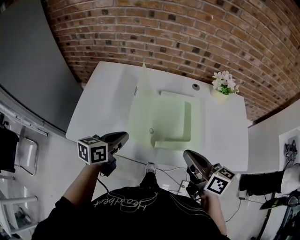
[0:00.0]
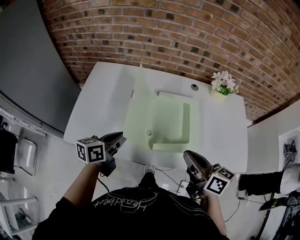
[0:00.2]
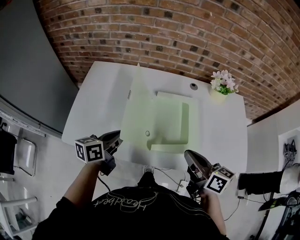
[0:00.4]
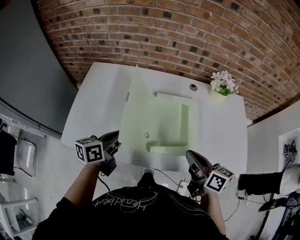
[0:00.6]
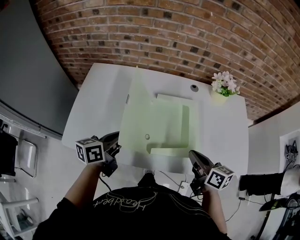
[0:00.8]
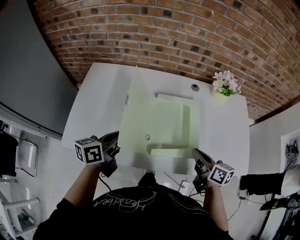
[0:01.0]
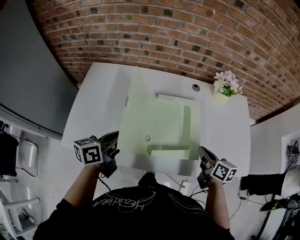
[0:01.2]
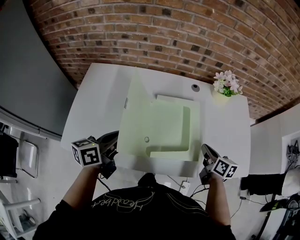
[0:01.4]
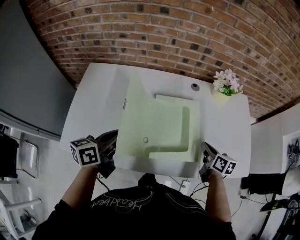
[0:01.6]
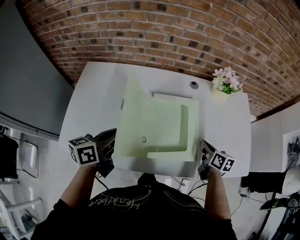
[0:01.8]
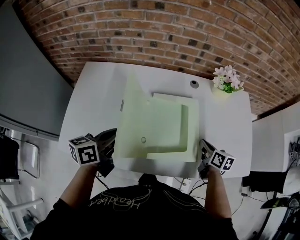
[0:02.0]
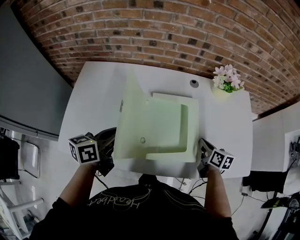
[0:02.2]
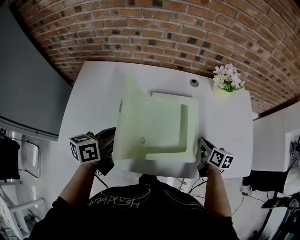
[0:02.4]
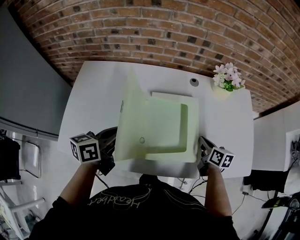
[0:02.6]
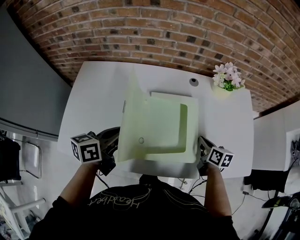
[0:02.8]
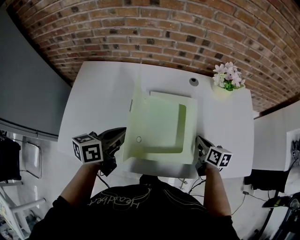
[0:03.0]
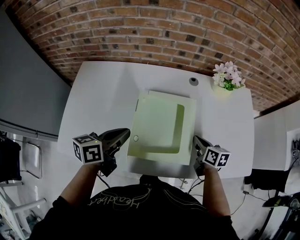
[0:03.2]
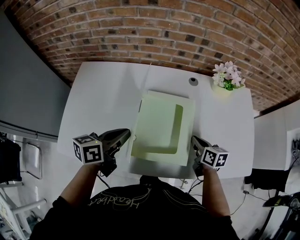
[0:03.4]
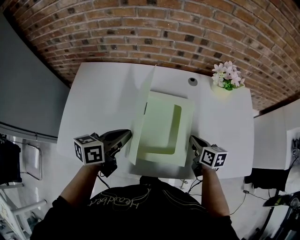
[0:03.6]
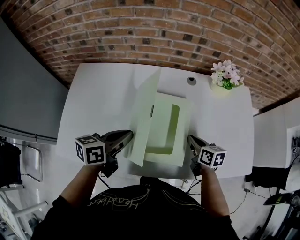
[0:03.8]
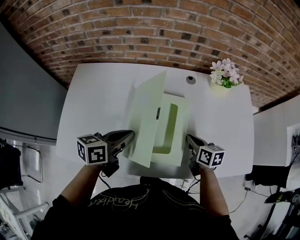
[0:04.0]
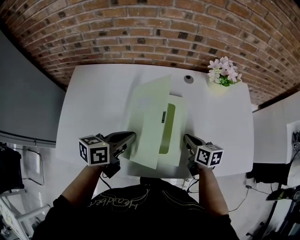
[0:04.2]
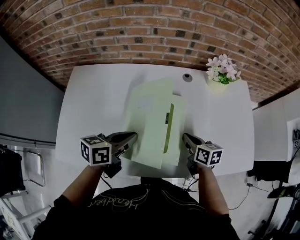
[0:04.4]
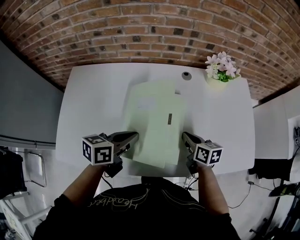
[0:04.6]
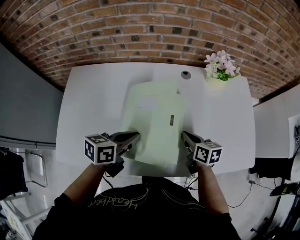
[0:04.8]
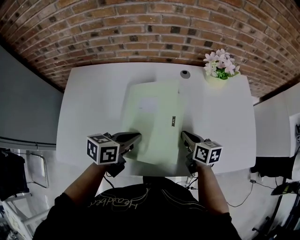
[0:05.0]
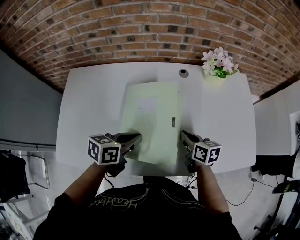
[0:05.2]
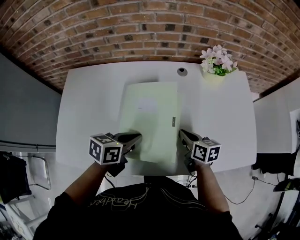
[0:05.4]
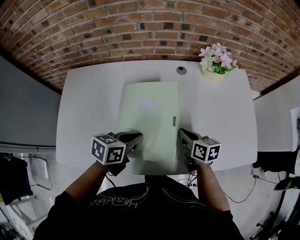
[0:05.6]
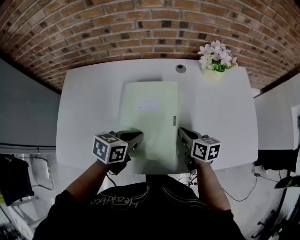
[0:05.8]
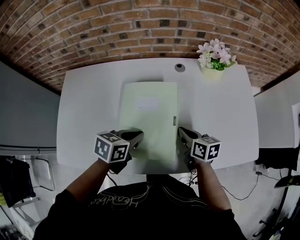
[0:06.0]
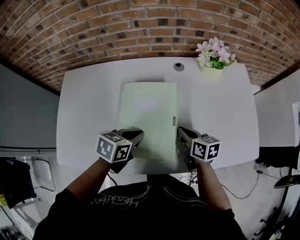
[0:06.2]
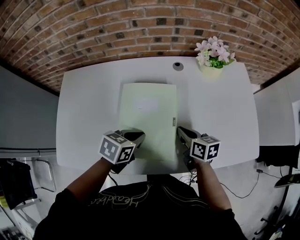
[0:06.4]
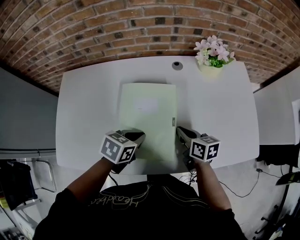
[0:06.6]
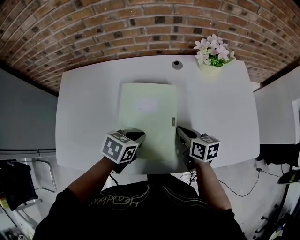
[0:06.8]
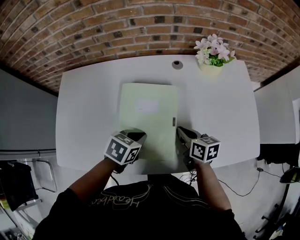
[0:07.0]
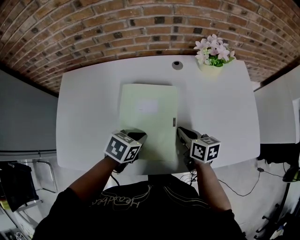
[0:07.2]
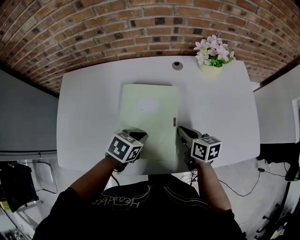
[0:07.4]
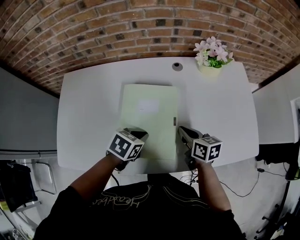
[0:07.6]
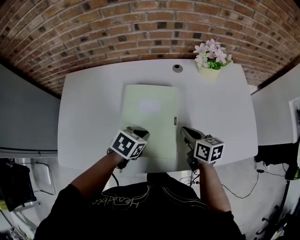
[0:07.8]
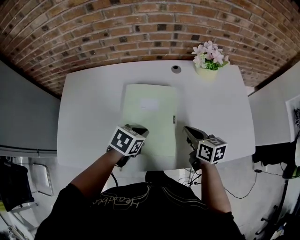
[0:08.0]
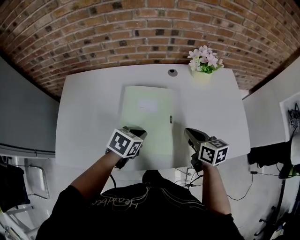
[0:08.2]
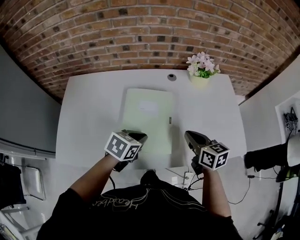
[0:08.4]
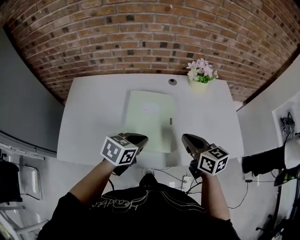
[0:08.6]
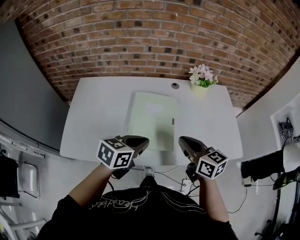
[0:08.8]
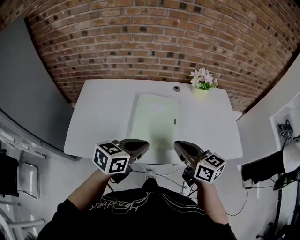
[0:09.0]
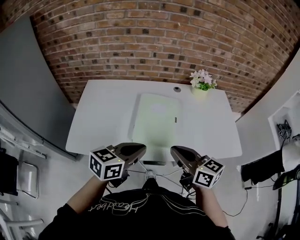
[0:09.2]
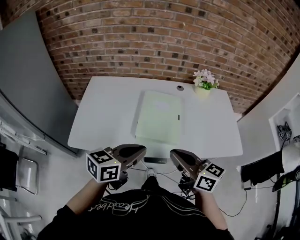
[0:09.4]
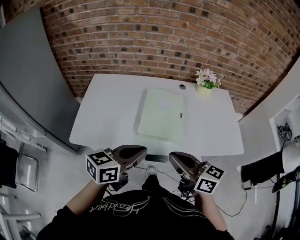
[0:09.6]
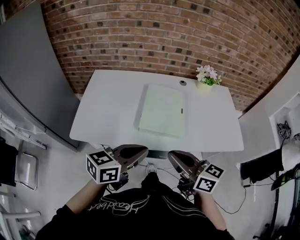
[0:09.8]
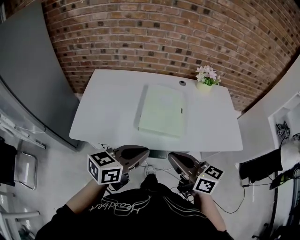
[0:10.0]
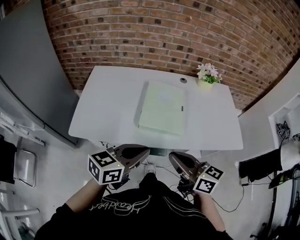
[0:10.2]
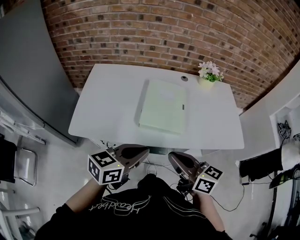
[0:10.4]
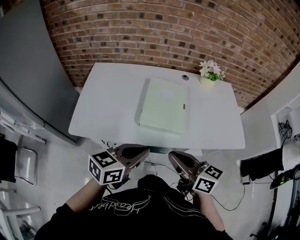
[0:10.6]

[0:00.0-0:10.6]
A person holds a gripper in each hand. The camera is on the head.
0:00.0 to 0:01.6: The right gripper moves downward, to the right and forward, approximately 25 cm, and swivels about 30 degrees. The left gripper goes about 5 cm forward.
0:01.6 to 0:03.0: The grippers stay close to where they were, moving slightly.
0:03.0 to 0:04.6: The left gripper goes about 5 cm to the right, while the right gripper heads to the left, covering about 5 cm.
0:04.6 to 0:06.0: The left gripper travels downward by approximately 5 cm, and swivels approximately 20 degrees.
0:06.0 to 0:07.6: The grippers move only a little.
0:07.6 to 0:09.0: The grippers both shift upward and backward by about 25 cm. The left gripper tilts its fingers about 30 degrees upward, while the right gripper changes its angle by about 30 degrees.
0:09.0 to 0:10.6: The right gripper is displaced backward and to the left by approximately 15 cm; the left gripper moves backward, some 10 cm.

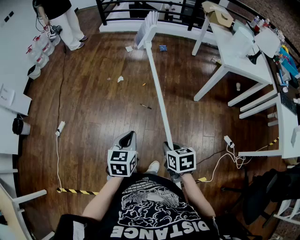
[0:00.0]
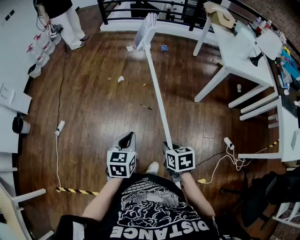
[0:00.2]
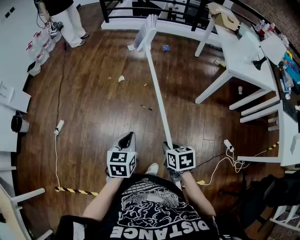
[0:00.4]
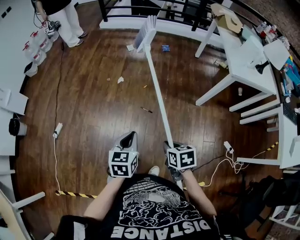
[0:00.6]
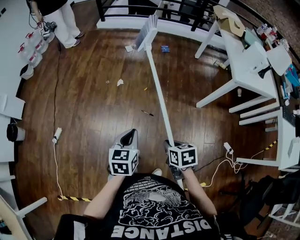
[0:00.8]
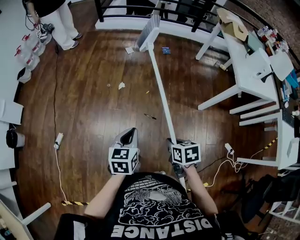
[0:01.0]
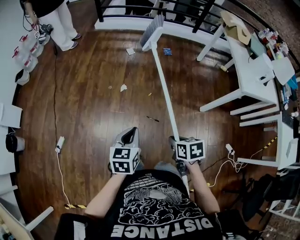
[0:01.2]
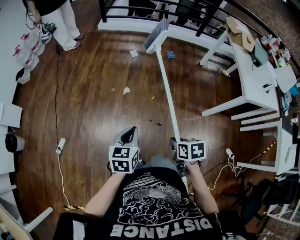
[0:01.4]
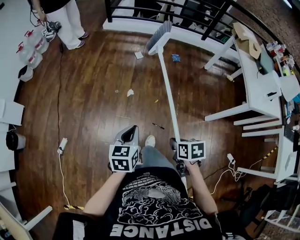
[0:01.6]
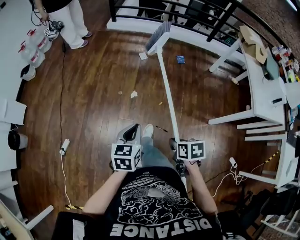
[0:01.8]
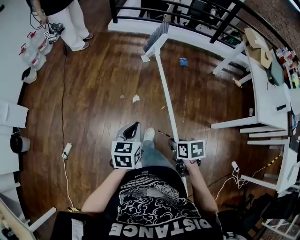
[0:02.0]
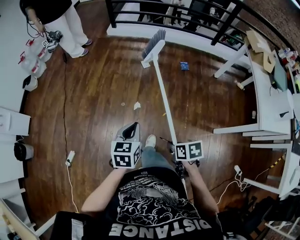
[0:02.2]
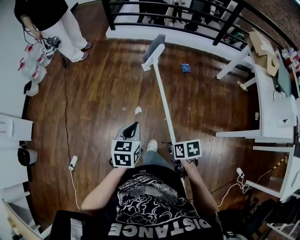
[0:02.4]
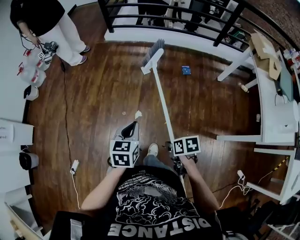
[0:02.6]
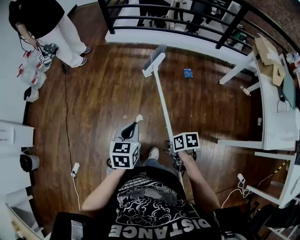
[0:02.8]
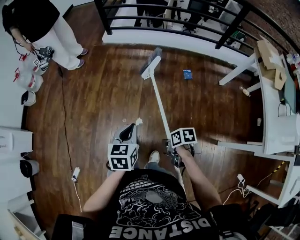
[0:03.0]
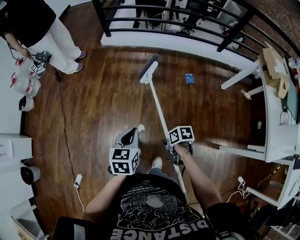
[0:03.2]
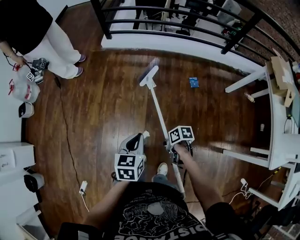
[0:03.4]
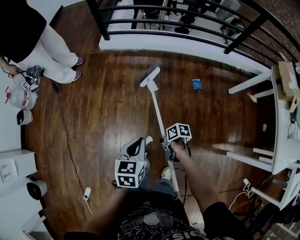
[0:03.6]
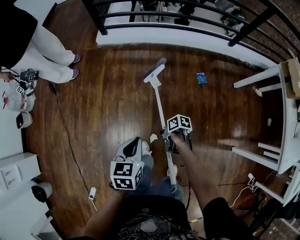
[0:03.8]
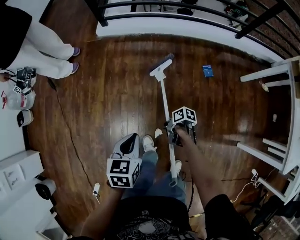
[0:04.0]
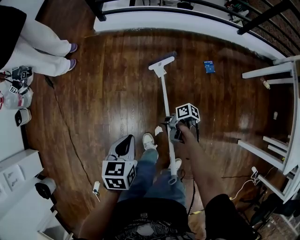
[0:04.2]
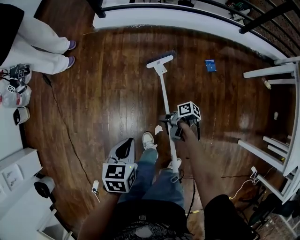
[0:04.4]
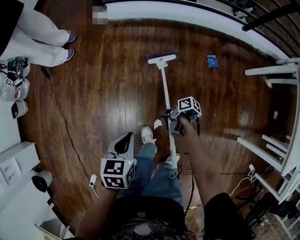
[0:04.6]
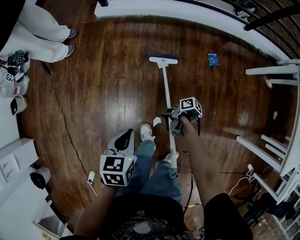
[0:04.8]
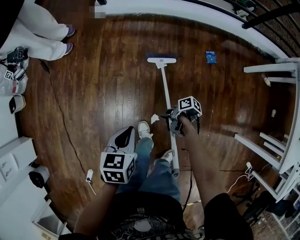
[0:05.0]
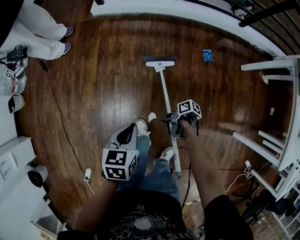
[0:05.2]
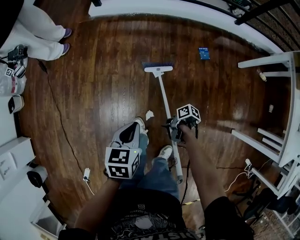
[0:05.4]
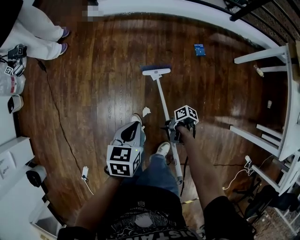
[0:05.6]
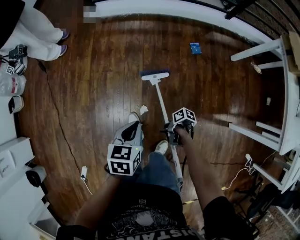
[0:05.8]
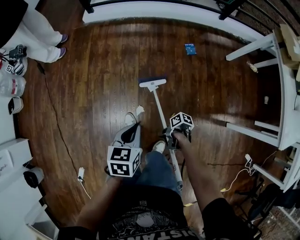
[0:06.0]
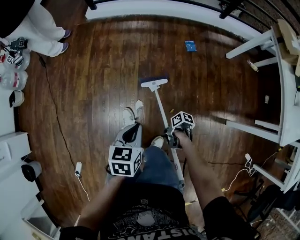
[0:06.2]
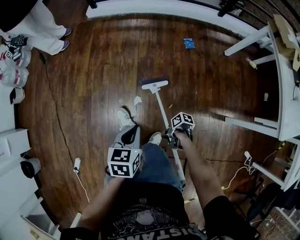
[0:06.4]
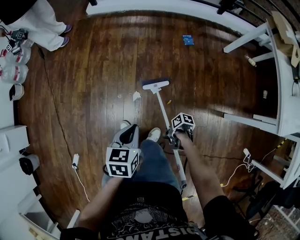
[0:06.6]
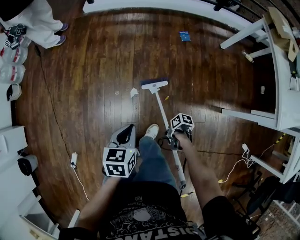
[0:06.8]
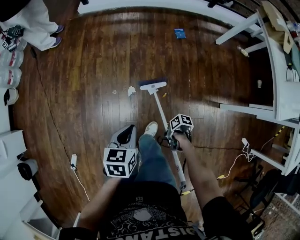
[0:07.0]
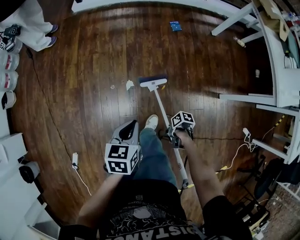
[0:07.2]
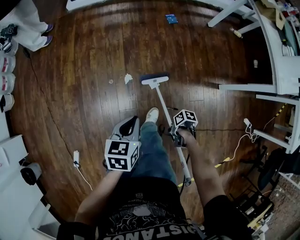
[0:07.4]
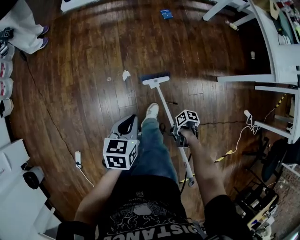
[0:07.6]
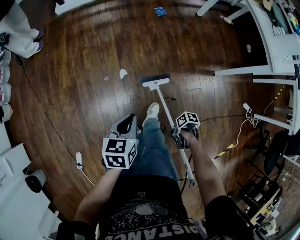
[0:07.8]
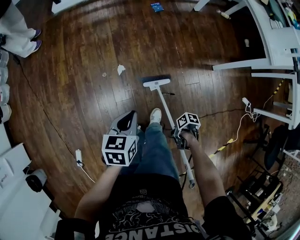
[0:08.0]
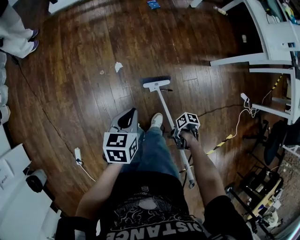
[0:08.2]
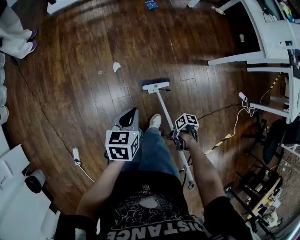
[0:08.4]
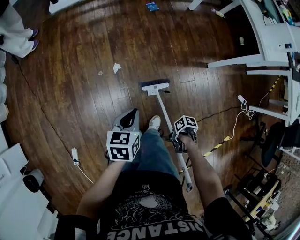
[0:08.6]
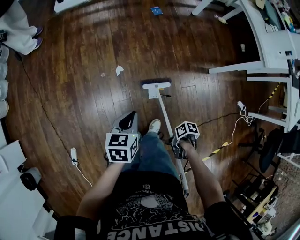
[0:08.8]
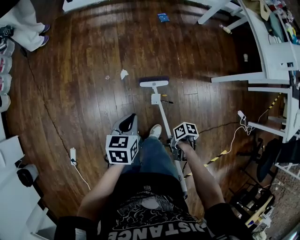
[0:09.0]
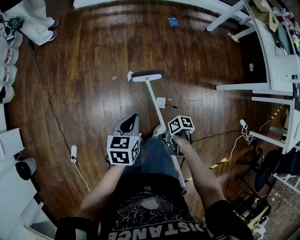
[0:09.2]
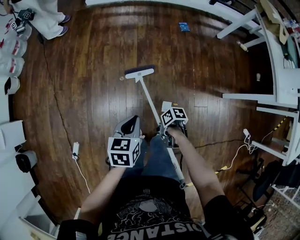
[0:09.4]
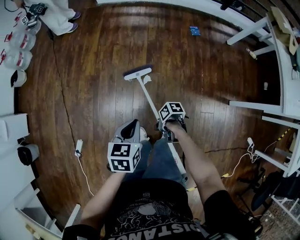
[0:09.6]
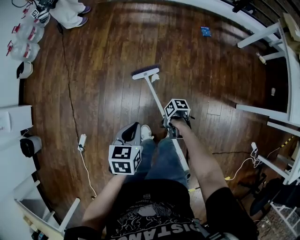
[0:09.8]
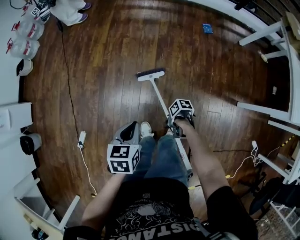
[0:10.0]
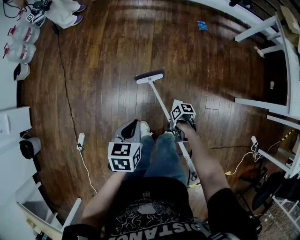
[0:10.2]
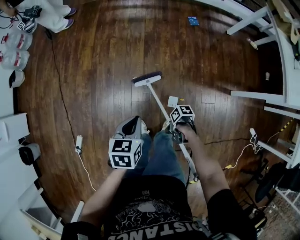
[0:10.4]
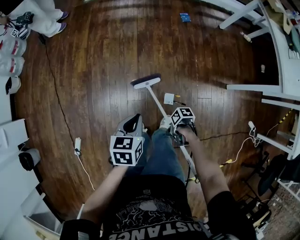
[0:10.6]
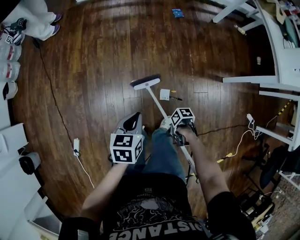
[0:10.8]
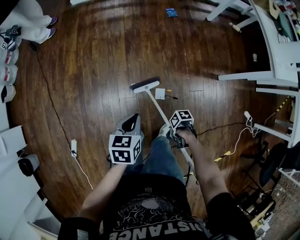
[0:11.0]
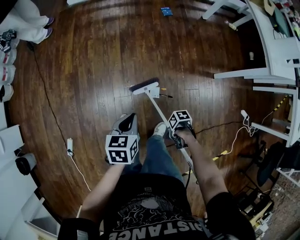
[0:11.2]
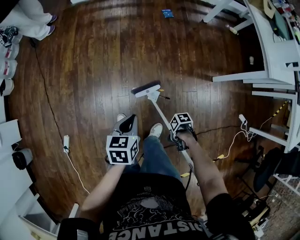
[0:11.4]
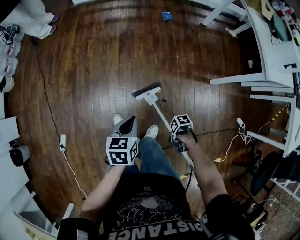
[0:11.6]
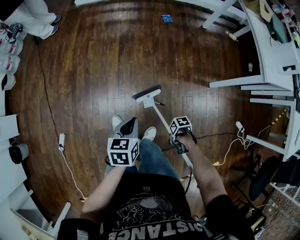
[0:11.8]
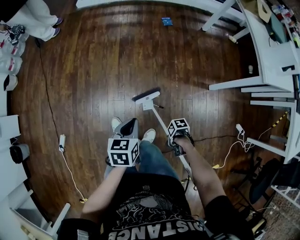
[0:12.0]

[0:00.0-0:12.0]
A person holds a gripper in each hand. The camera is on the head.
0:00.0 to 0:01.6: The left gripper changes place by about 35 cm.
0:01.6 to 0:03.0: The left gripper ends up roughly 35 cm from where it was.
0:03.0 to 0:04.4: The left gripper moves roughly 30 cm.
0:04.4 to 0:06.0: The left gripper shifts by about 20 cm.
0:06.0 to 0:07.6: The left gripper shifts by approximately 25 cm.
0:10.4 to 0:12.0: The left gripper changes place by approximately 25 cm.

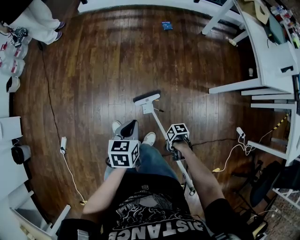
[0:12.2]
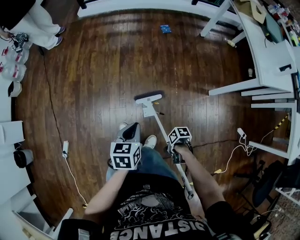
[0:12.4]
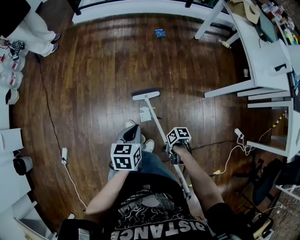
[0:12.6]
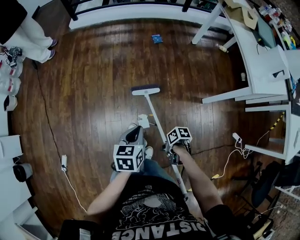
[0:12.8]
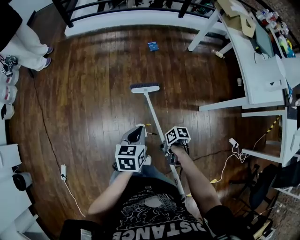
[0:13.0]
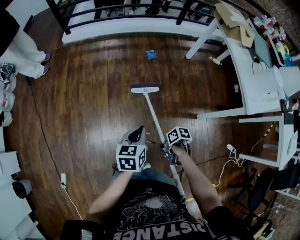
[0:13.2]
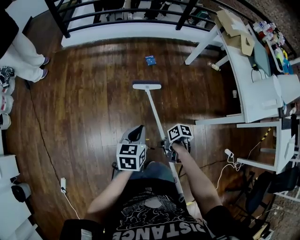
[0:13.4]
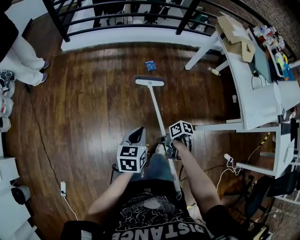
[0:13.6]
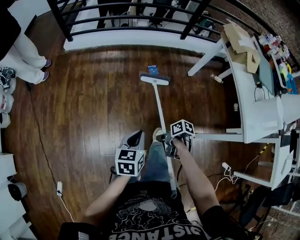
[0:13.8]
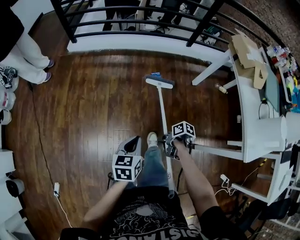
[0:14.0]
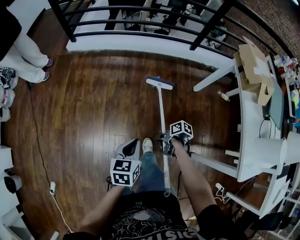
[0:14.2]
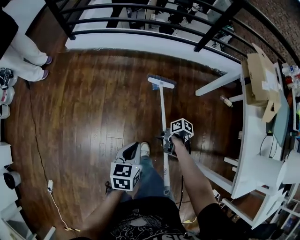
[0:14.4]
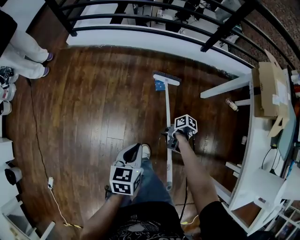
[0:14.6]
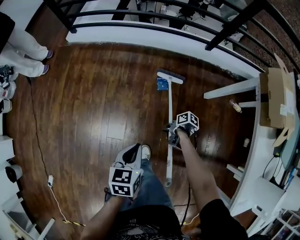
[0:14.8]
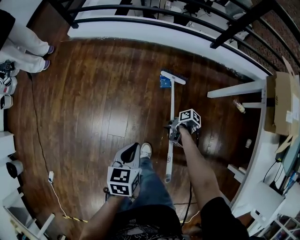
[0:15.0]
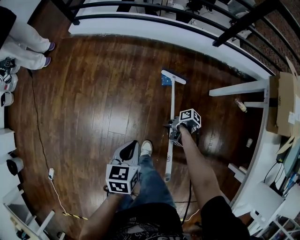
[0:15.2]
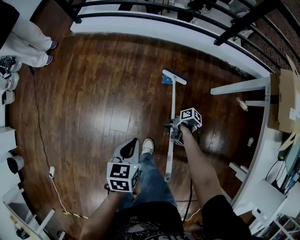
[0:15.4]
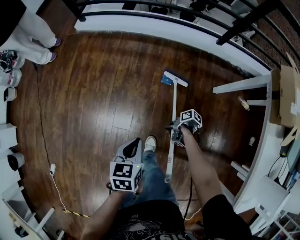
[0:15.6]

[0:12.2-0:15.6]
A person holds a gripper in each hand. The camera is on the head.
0:12.2 to 0:13.8: The left gripper shifts by some 35 cm.
0:13.8 to 0:15.6: The left gripper moves some 25 cm.
